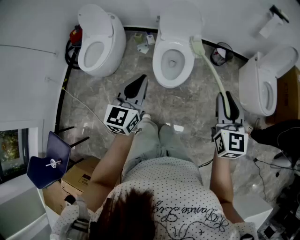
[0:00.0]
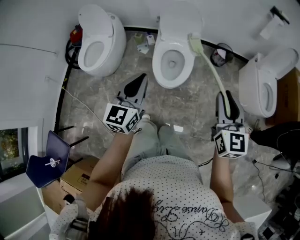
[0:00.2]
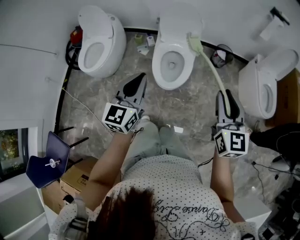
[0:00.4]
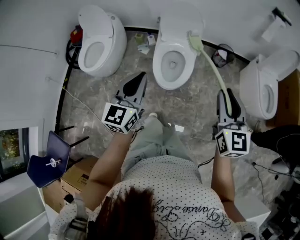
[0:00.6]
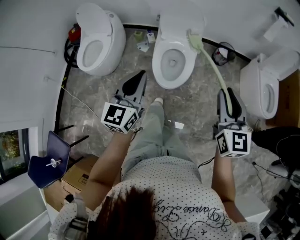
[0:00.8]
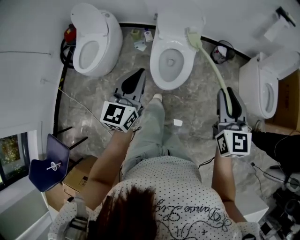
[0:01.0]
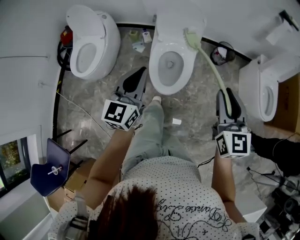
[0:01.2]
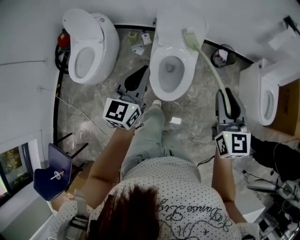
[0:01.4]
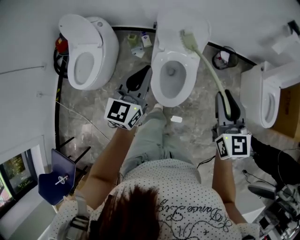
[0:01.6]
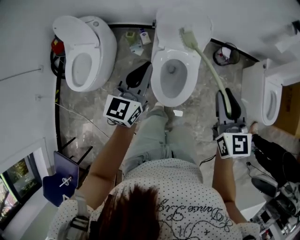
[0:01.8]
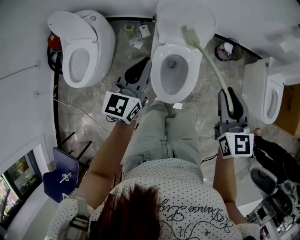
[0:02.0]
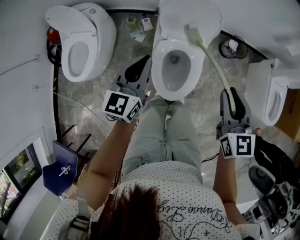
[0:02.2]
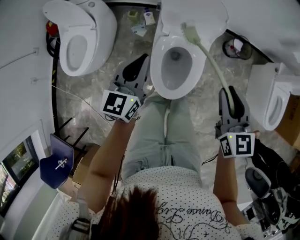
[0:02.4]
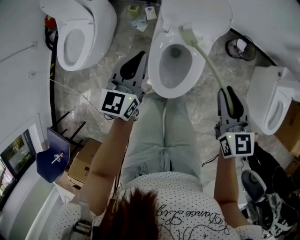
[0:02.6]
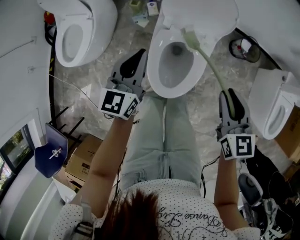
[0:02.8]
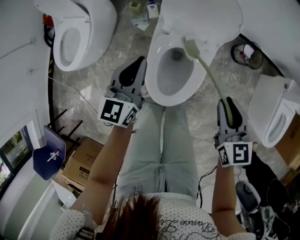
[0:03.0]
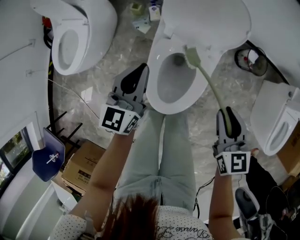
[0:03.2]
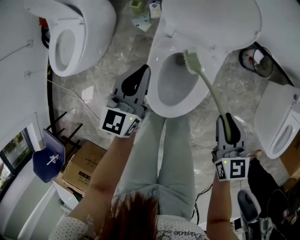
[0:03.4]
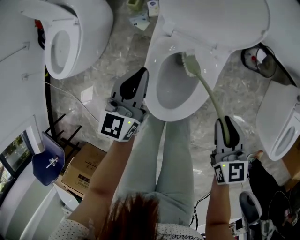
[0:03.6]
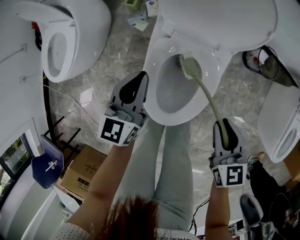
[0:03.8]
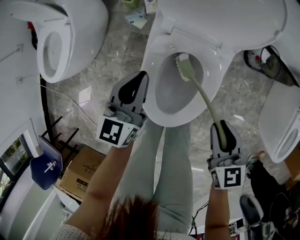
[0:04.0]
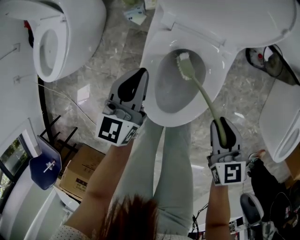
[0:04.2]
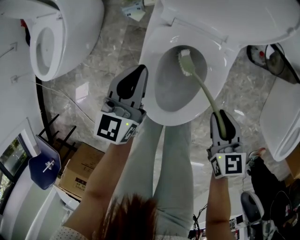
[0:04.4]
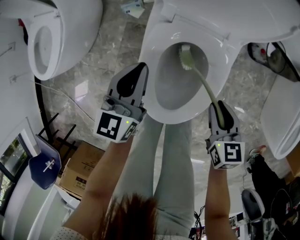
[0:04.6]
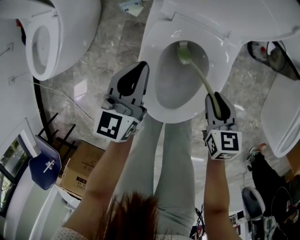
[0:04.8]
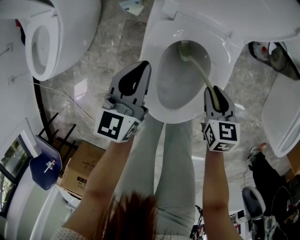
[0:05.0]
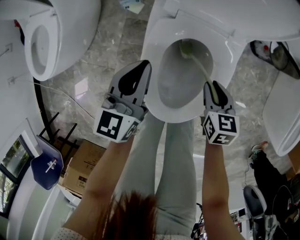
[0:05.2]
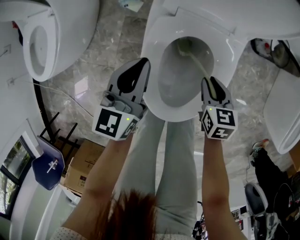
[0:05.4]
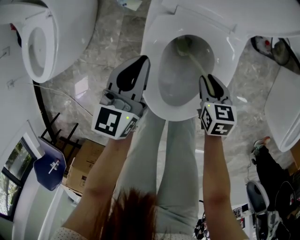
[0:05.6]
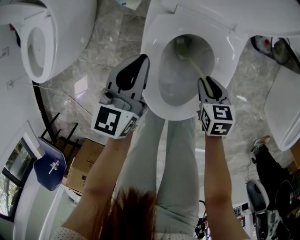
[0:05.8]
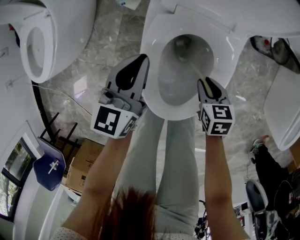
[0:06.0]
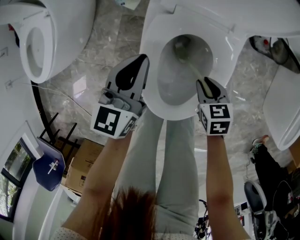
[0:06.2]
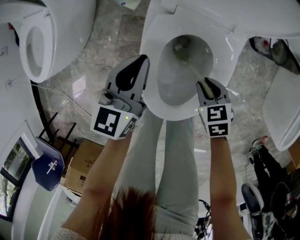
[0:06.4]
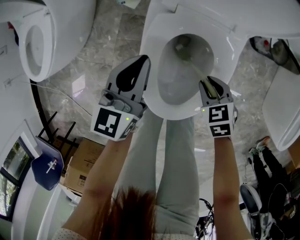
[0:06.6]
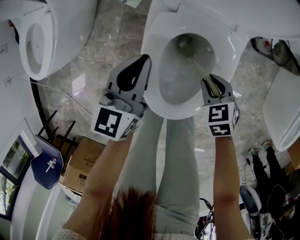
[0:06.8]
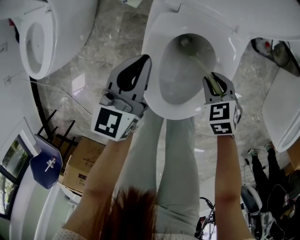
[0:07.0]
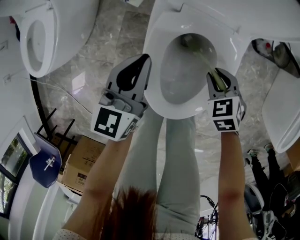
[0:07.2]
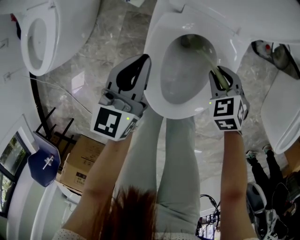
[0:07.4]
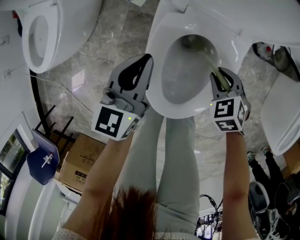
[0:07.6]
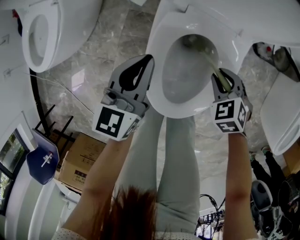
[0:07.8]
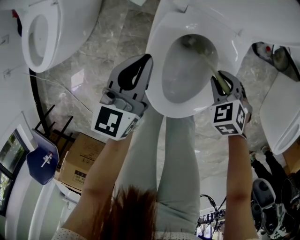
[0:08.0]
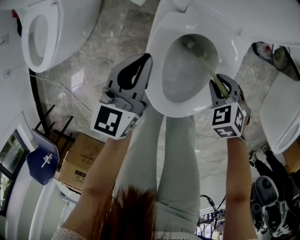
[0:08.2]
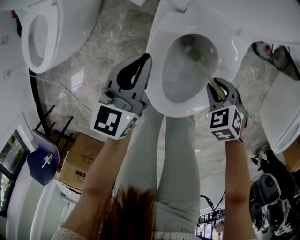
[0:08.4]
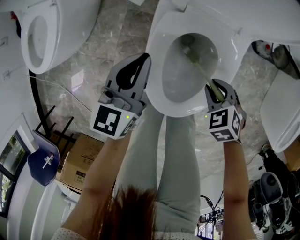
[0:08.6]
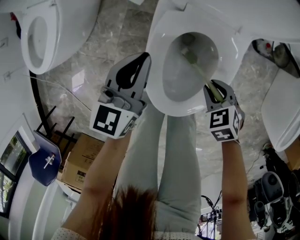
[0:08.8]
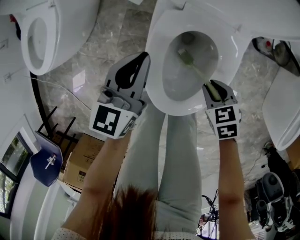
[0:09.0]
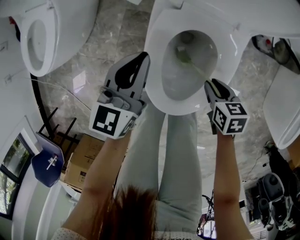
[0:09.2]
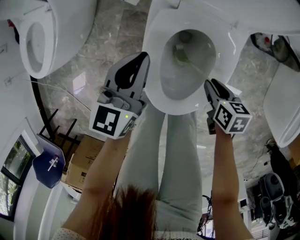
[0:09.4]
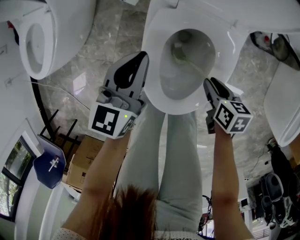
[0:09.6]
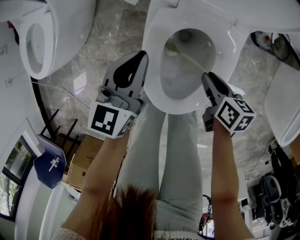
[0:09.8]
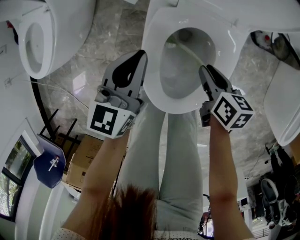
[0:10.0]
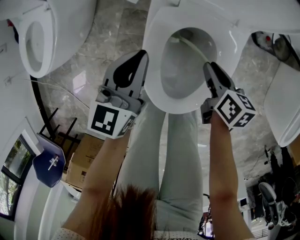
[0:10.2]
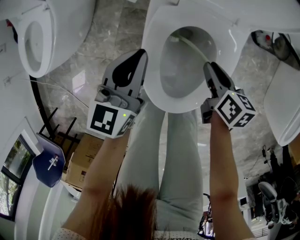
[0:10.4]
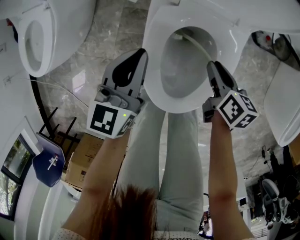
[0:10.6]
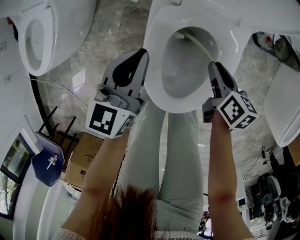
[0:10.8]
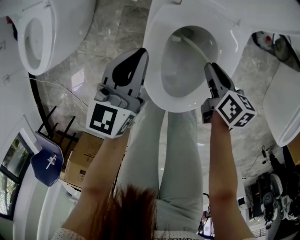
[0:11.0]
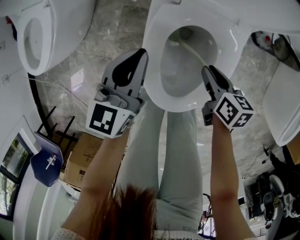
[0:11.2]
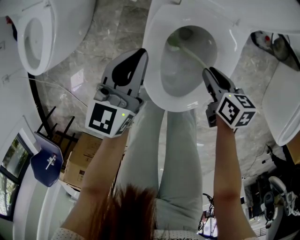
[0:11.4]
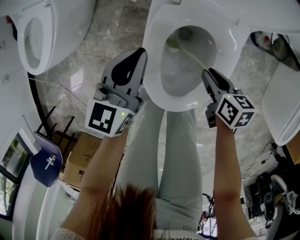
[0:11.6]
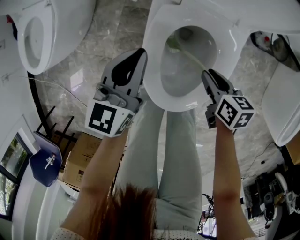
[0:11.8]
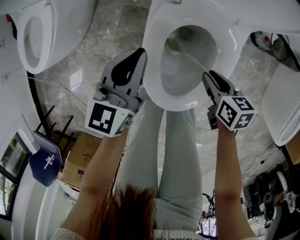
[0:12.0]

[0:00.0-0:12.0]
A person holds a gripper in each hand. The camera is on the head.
0:00.0 to 0:01.6: Both grippers travel together forward, some 25 cm.
0:01.6 to 0:03.0: Both grippers move downward and forward, about 25 cm. The right gripper swivels roughly 20 degrees.
0:03.0 to 0:04.4: The grippers both shift downward by some 20 cm.
0:04.4 to 0:06.0: The right gripper moves downward, roughly 15 cm.
0:06.0 to 0:07.6: The right gripper changes place by roughly 5 cm, and rotates around the line of its fingers by about 40 degrees, counterclockwise from behind.
0:07.6 to 0:09.0: The right gripper travels backward by approximately 5 cm, and swivels approximately 20 degrees.
0:09.0 to 0:10.4: The right gripper moves forward, roughly 5 cm, and twists approximately 50 degrees clockwise, seen from behind.
0:10.4 to 0:12.0: There are only small adjustments of the grippers.

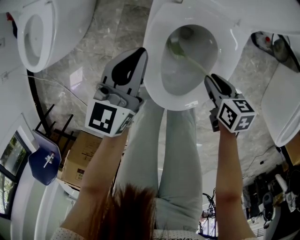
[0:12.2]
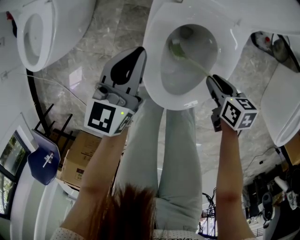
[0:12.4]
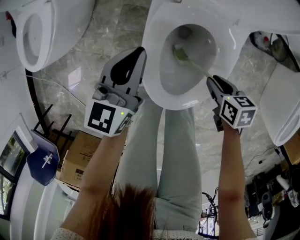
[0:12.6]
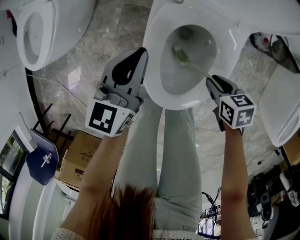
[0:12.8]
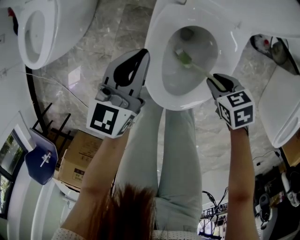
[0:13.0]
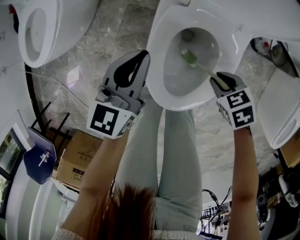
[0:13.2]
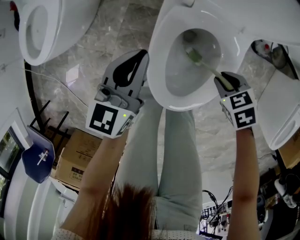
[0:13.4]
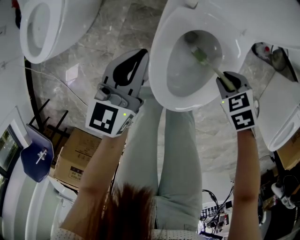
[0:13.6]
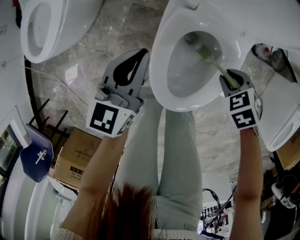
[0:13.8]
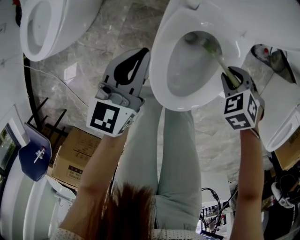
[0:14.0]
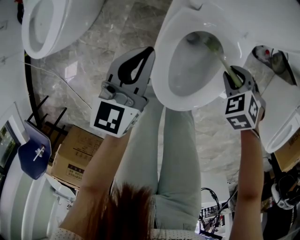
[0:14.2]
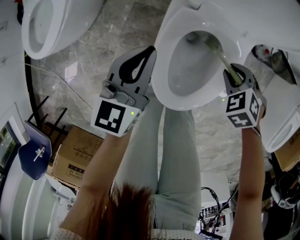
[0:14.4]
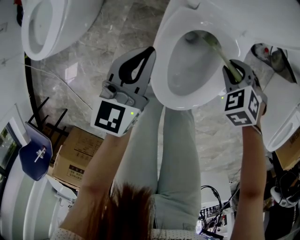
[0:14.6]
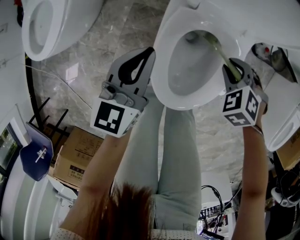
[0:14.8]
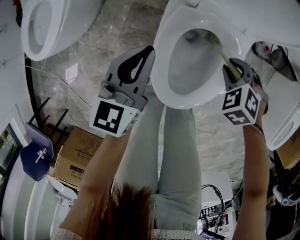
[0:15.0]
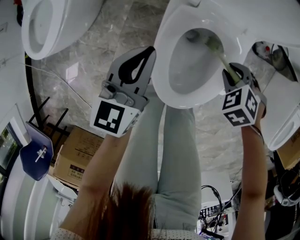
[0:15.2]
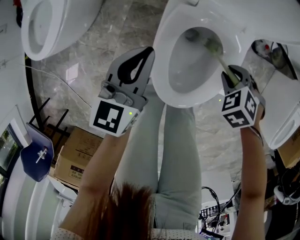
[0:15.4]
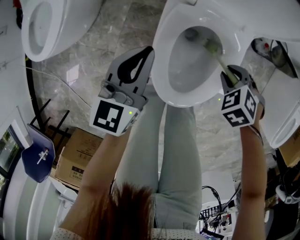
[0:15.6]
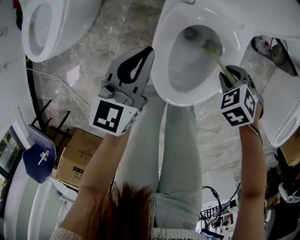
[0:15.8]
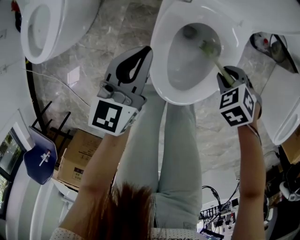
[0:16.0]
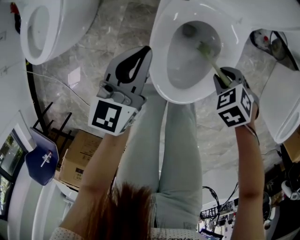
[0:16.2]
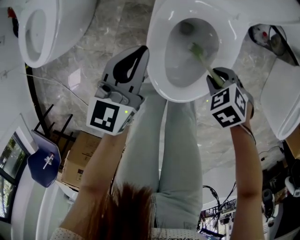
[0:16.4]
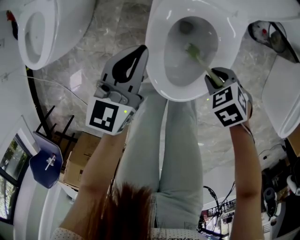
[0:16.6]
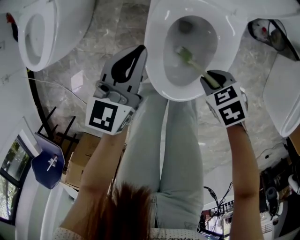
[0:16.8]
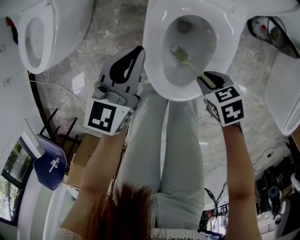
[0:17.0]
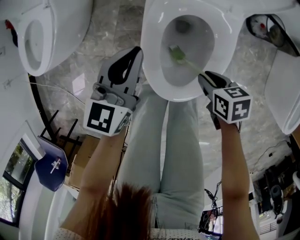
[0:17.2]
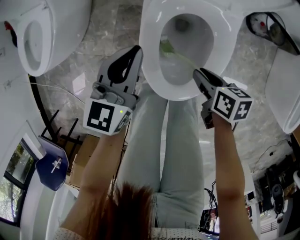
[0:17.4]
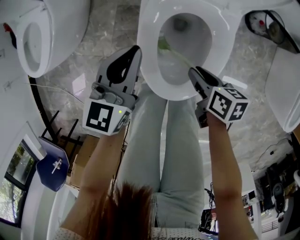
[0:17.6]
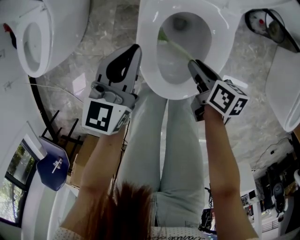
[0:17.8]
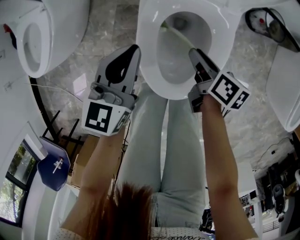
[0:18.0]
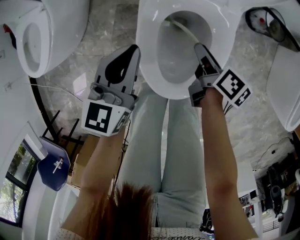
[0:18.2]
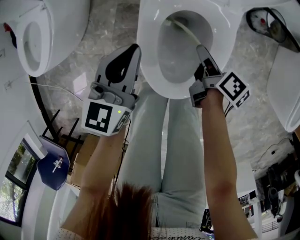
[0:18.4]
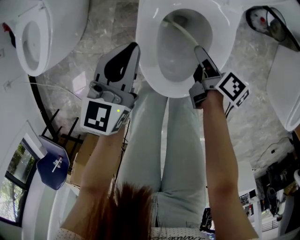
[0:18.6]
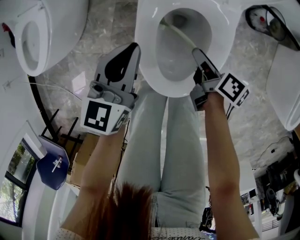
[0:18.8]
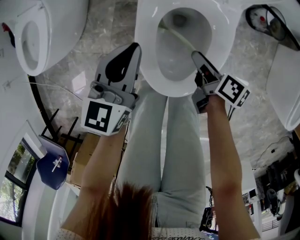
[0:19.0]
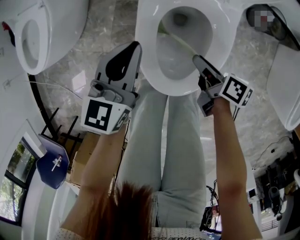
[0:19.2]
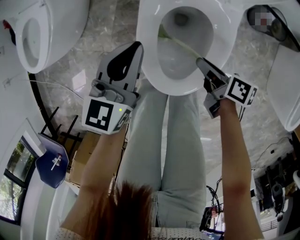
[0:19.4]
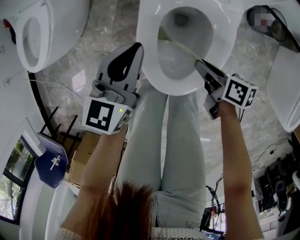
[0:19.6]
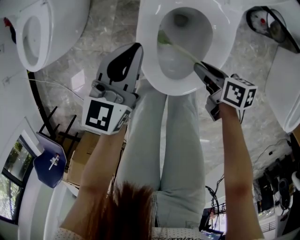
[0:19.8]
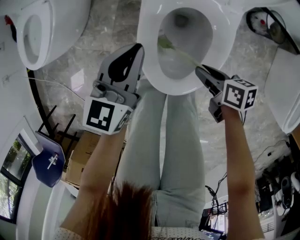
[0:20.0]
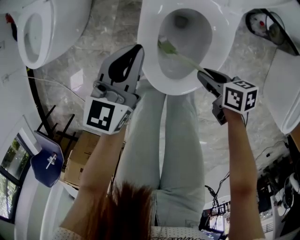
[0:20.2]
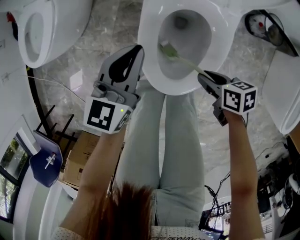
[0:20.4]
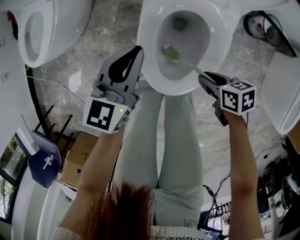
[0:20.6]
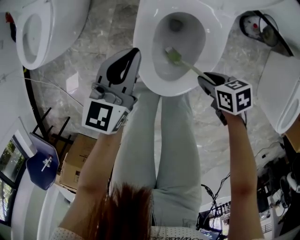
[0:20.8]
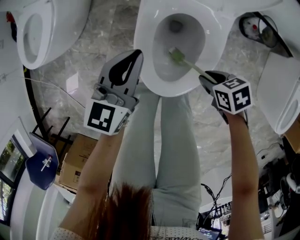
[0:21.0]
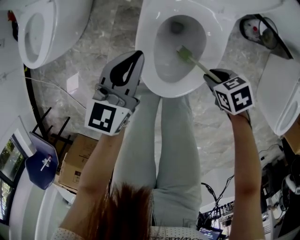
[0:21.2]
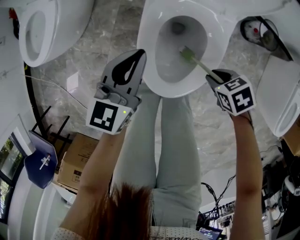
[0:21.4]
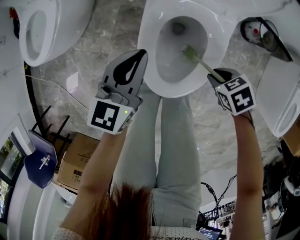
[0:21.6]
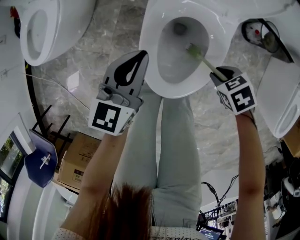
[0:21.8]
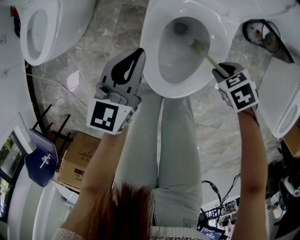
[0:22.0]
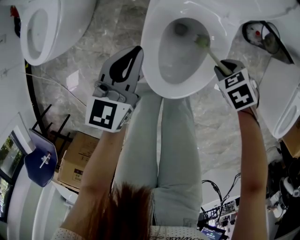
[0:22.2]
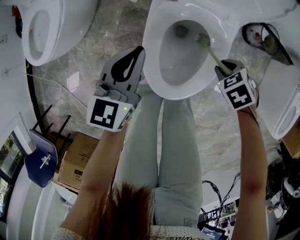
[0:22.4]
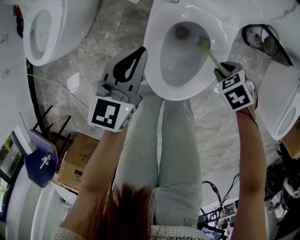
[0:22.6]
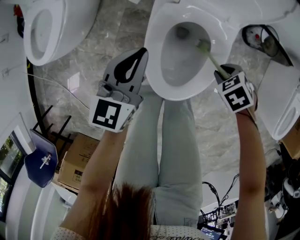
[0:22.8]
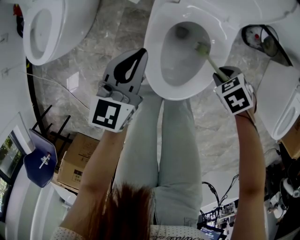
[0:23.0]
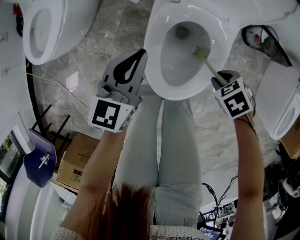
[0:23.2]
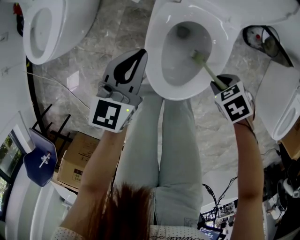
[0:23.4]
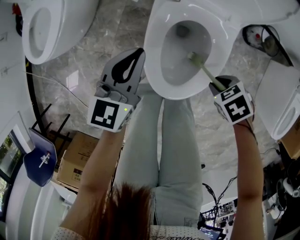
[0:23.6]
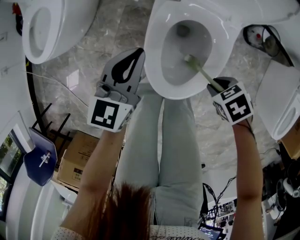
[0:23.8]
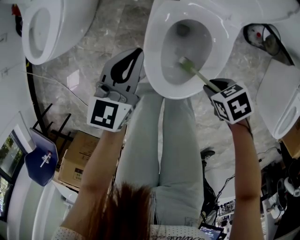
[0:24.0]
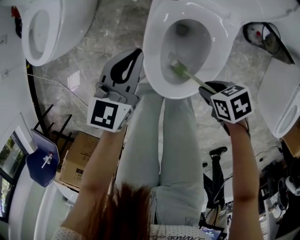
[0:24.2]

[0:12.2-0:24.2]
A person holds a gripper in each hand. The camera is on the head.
0:12.2 to 0:13.8: The right gripper rotates around the line of its fingers by about 50 degrees, counterclockwise from behind.
0:15.2 to 0:16.6: The right gripper moves approximately 10 cm, and turns by about 20 degrees.
0:16.6 to 0:18.2: The right gripper moves about 10 cm, and rotates around the line of its fingers by approximately 80 degrees, clockwise from behind.
0:18.2 to 0:19.8: The right gripper is displaced backward by approximately 10 cm, and swivels approximately 30 degrees.
0:19.8 to 0:21.2: The right gripper moves about 5 cm, and turns by some 50 degrees.
0:21.2 to 0:22.6: The right gripper moves approximately 5 cm, and changes its angle by approximately 20 degrees.
0:22.6 to 0:24.2: The right gripper shifts by about 10 cm, and swivels some 30 degrees.
